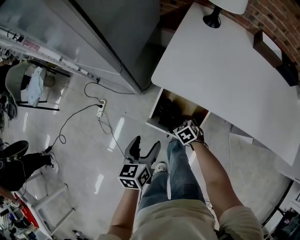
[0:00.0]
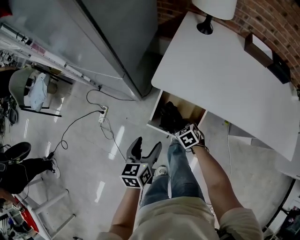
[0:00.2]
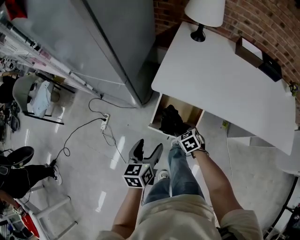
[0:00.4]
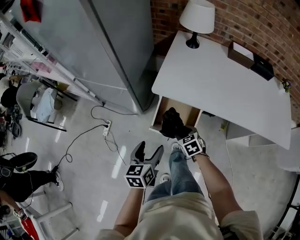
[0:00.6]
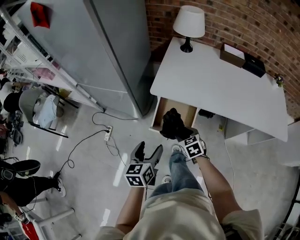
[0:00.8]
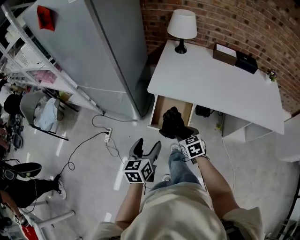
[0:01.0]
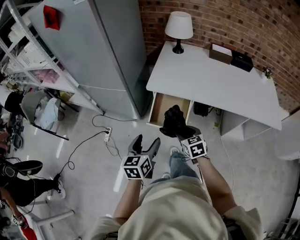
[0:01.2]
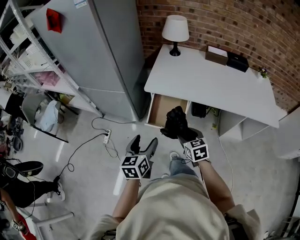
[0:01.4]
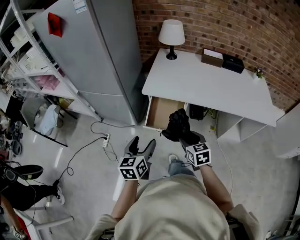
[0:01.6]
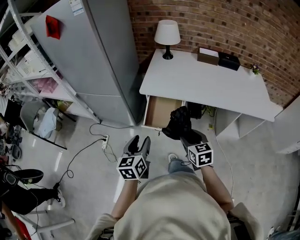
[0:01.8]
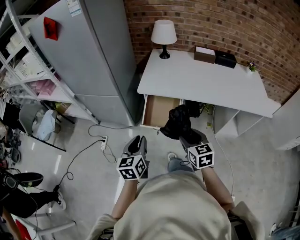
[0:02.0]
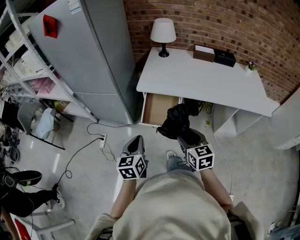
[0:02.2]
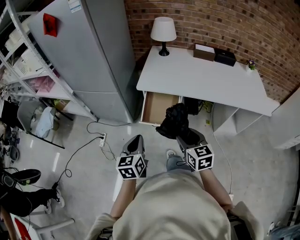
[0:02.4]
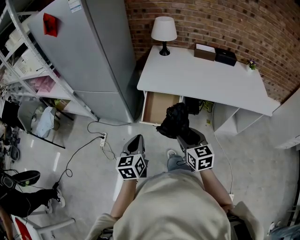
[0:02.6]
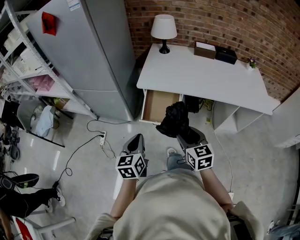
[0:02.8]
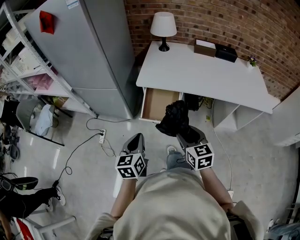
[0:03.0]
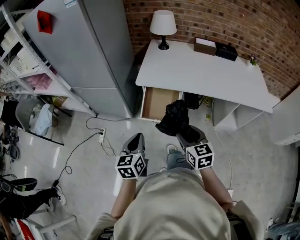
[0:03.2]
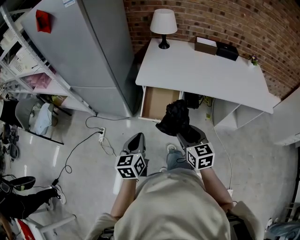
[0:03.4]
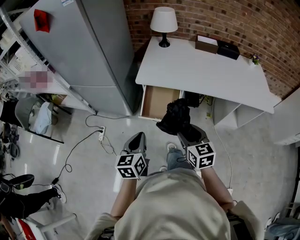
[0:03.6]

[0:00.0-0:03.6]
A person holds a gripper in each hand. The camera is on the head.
0:00.0 to 0:01.8: The right gripper is displaced upward and backward by roughly 40 cm, and points its fingers roughly 40 degrees further upward. The left gripper goes about 25 cm backward and upward, turns by about 20 degrees, and closes.
0:01.8 to 0:03.6: The left gripper closes up.

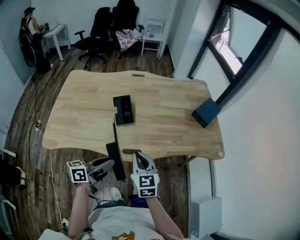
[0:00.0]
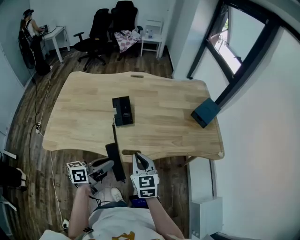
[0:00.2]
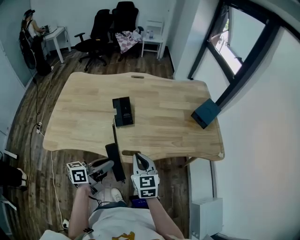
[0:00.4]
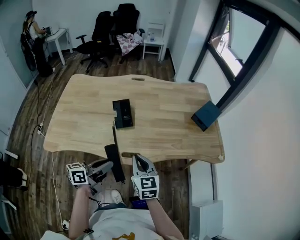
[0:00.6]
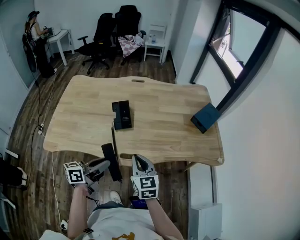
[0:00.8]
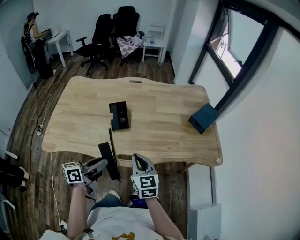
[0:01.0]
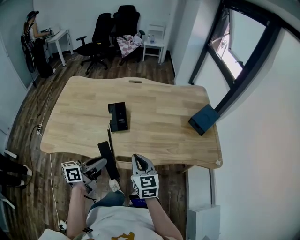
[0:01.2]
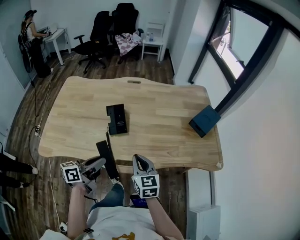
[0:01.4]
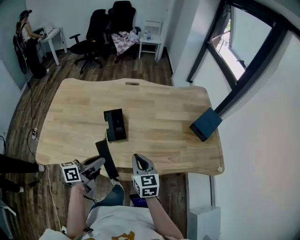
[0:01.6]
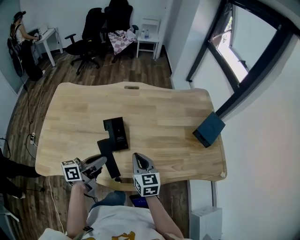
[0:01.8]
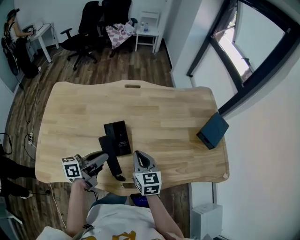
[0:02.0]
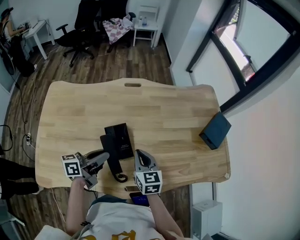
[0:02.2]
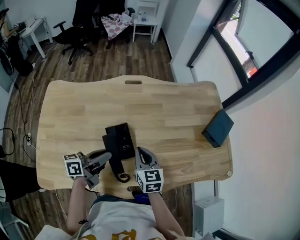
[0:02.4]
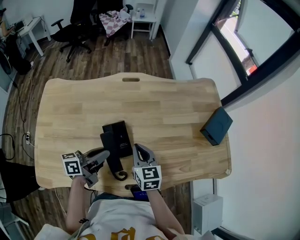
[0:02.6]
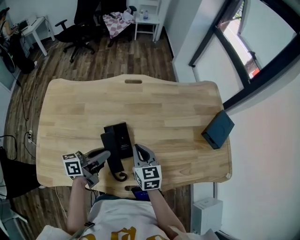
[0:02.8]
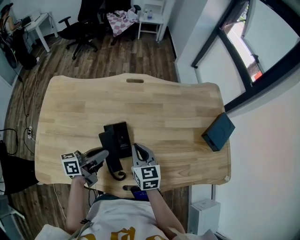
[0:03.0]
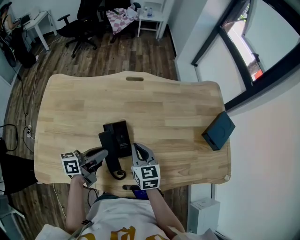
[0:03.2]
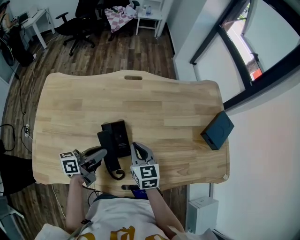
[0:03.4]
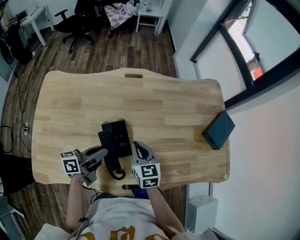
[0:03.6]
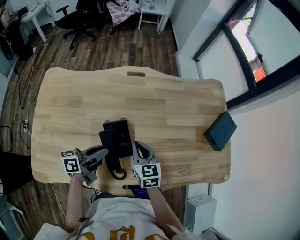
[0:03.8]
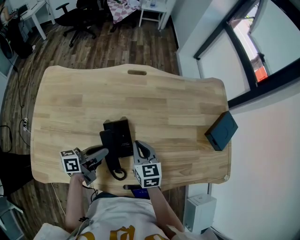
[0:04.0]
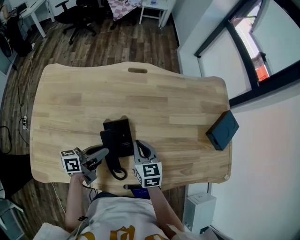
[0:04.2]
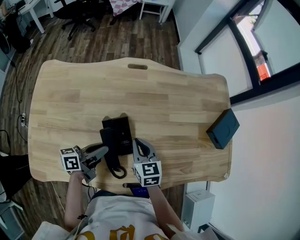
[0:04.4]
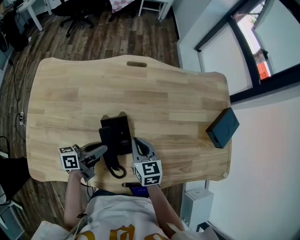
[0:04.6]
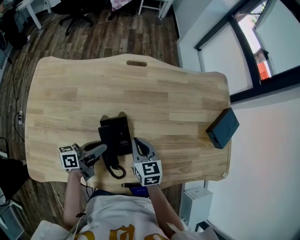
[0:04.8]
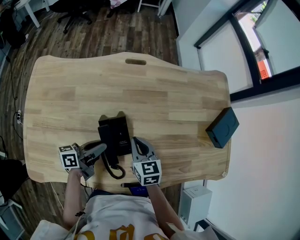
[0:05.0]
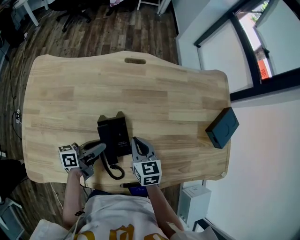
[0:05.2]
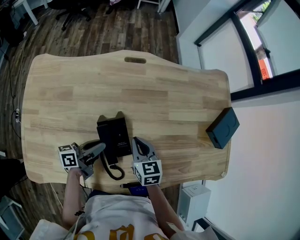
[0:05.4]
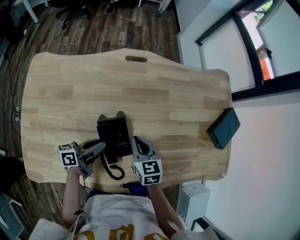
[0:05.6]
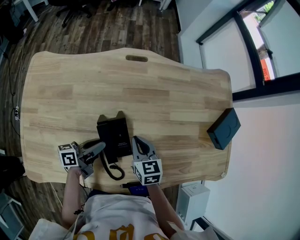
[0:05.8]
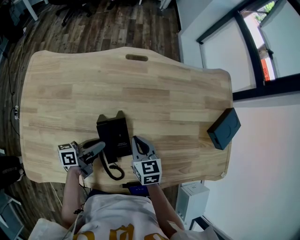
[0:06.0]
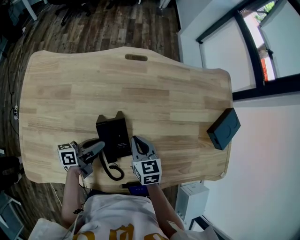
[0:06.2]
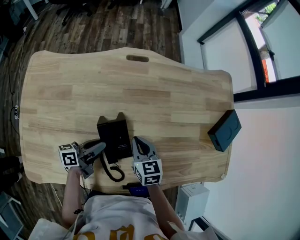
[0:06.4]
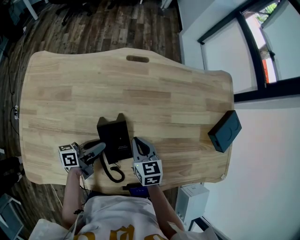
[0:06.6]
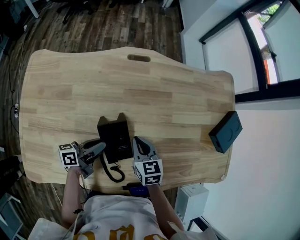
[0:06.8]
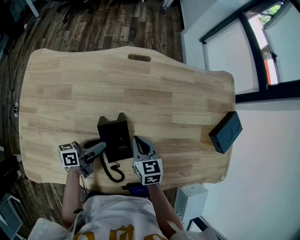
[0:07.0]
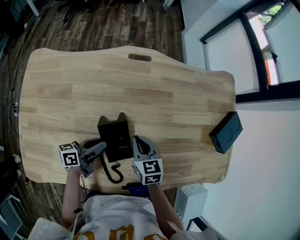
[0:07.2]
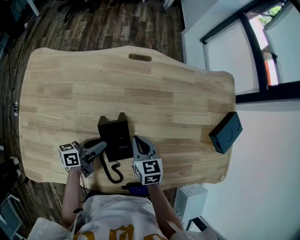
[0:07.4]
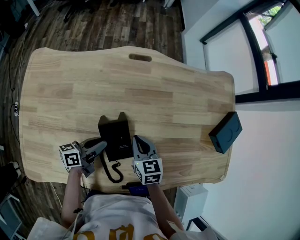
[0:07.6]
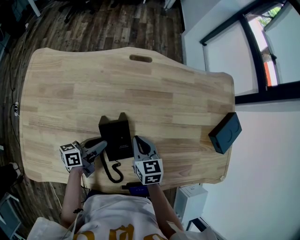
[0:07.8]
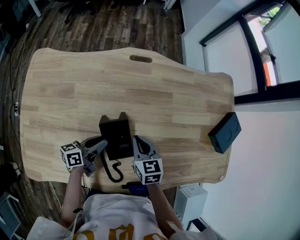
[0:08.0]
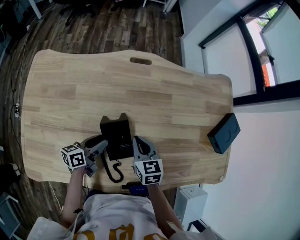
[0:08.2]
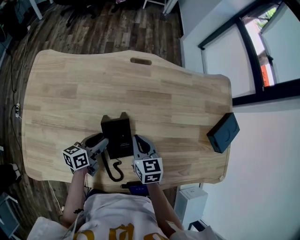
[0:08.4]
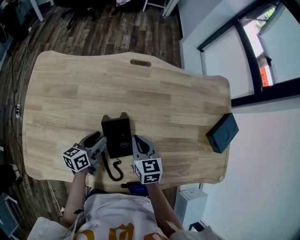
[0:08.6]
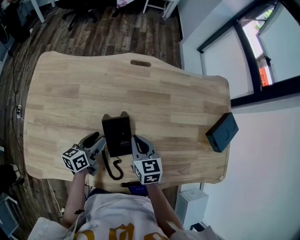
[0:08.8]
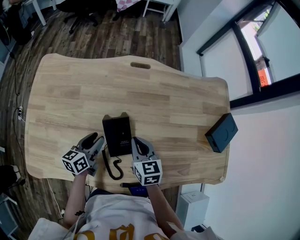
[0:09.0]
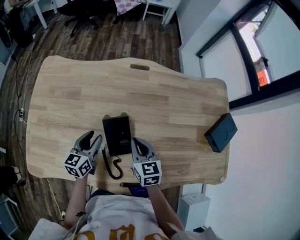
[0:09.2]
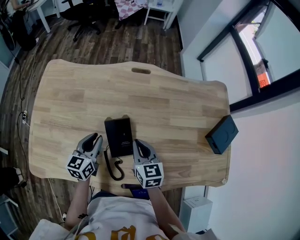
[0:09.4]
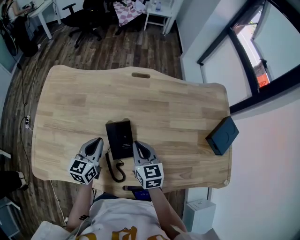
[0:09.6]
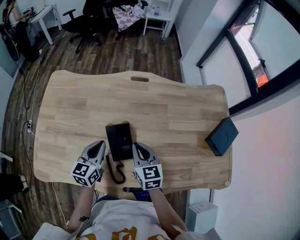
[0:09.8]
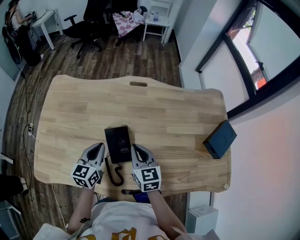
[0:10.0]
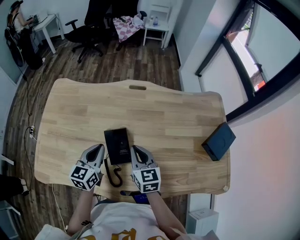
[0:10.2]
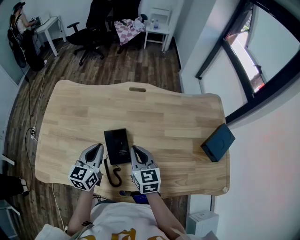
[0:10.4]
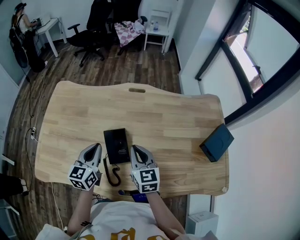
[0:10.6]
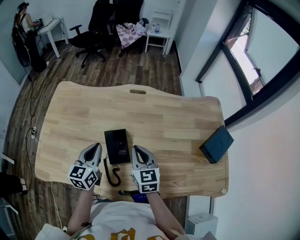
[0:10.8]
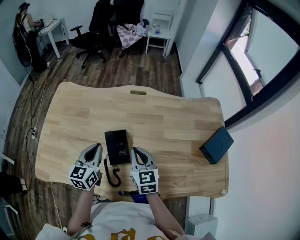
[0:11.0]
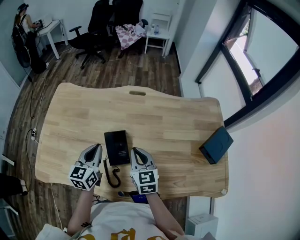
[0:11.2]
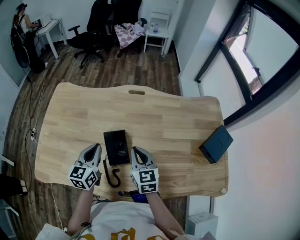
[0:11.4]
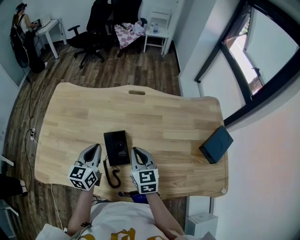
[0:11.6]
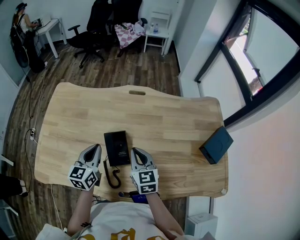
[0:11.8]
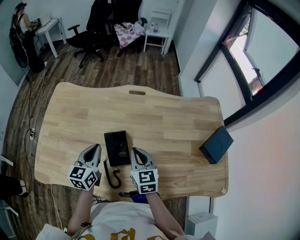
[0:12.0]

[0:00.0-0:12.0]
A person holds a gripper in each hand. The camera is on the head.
0:00.0 to 0:01.6: Both grippers travel together forward, about 10 cm.
0:01.6 to 0:03.0: Both grippers move forward and to the left, roughly 20 cm.
0:03.0 to 0:04.4: The two grippers go about 5 cm downward.
0:04.4 to 0:06.0: The left gripper heads downward, covering approximately 5 cm.
0:06.0 to 0:07.6: There are only small adjustments of the grippers.
0:07.6 to 0:09.0: The left gripper rotates some 30 degrees, and opens; the right gripper ends up about 5 cm from where it was.
0:09.0 to 0:10.4: The right gripper heads upward, covering about 10 cm. The left gripper moves upward, approximately 15 cm, changes its angle by approximately 30 degrees, and closes.
0:10.4 to 0:12.0: The grippers move only a little.

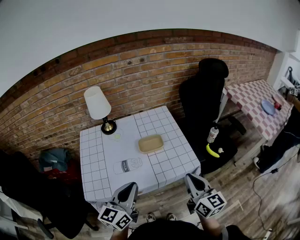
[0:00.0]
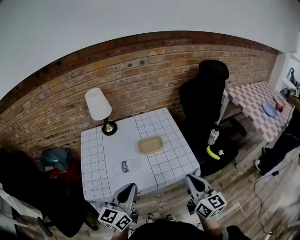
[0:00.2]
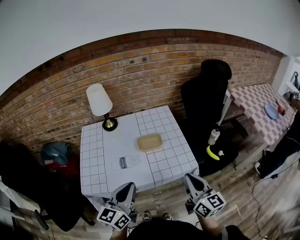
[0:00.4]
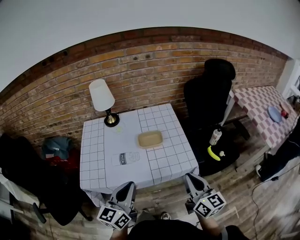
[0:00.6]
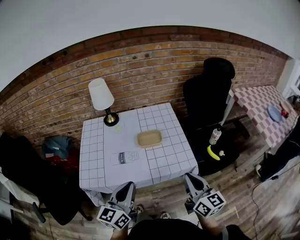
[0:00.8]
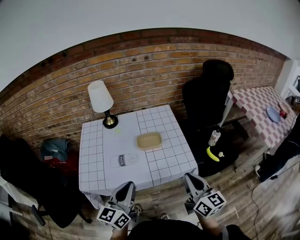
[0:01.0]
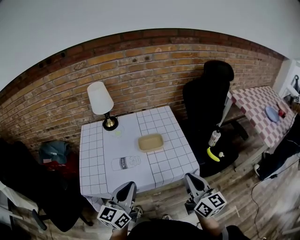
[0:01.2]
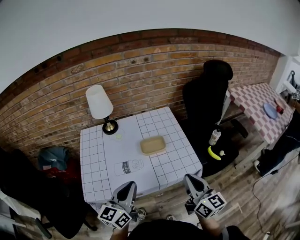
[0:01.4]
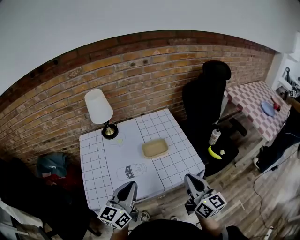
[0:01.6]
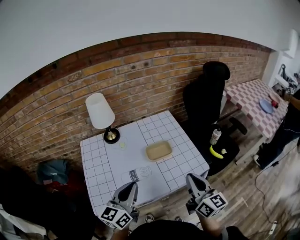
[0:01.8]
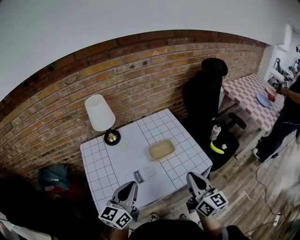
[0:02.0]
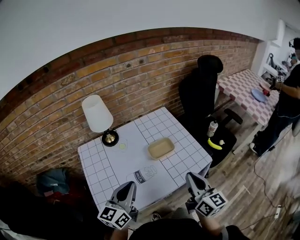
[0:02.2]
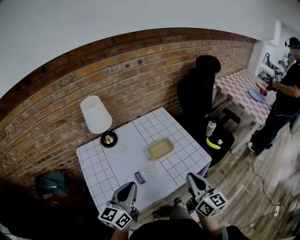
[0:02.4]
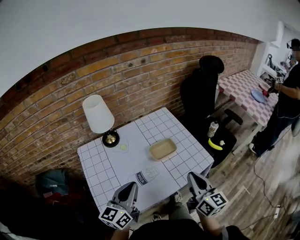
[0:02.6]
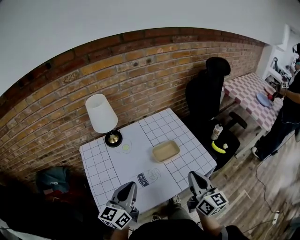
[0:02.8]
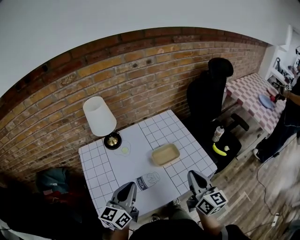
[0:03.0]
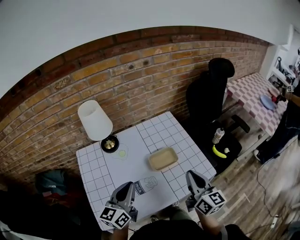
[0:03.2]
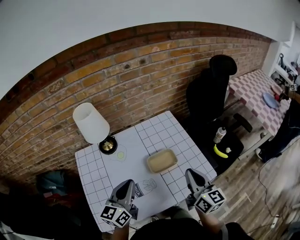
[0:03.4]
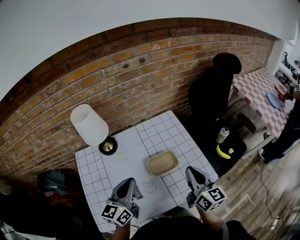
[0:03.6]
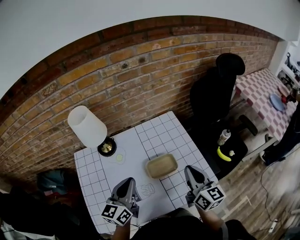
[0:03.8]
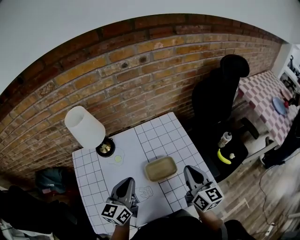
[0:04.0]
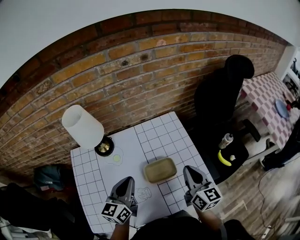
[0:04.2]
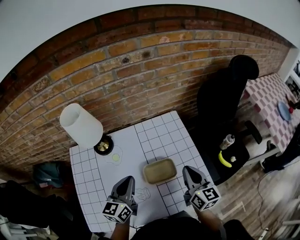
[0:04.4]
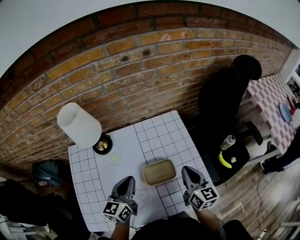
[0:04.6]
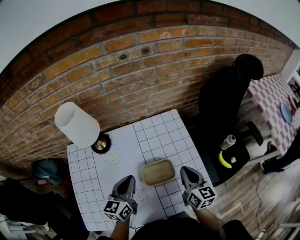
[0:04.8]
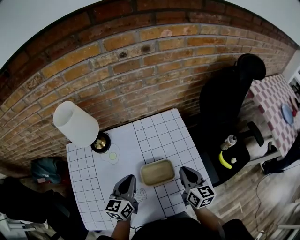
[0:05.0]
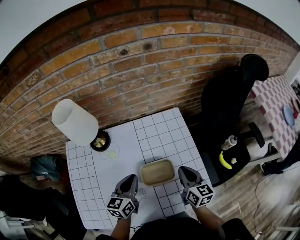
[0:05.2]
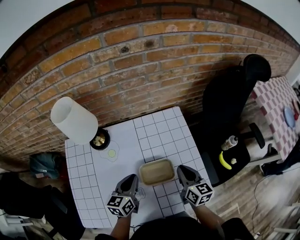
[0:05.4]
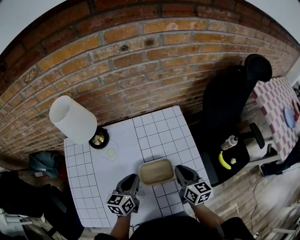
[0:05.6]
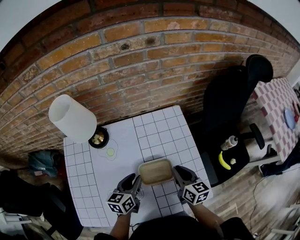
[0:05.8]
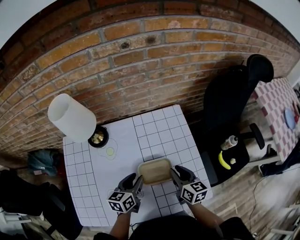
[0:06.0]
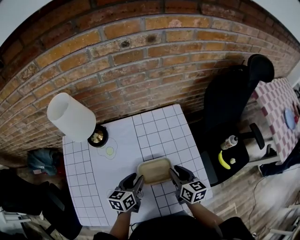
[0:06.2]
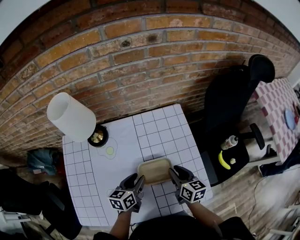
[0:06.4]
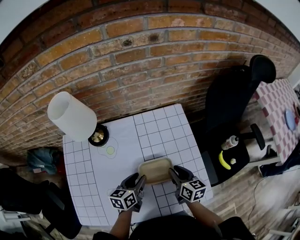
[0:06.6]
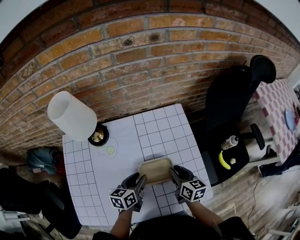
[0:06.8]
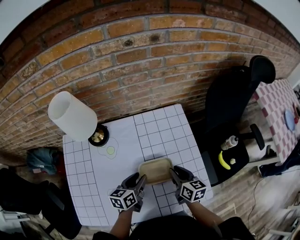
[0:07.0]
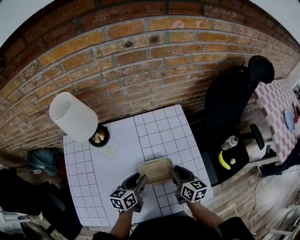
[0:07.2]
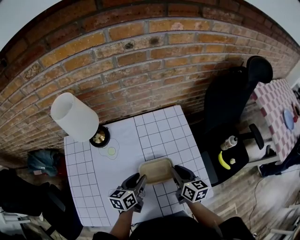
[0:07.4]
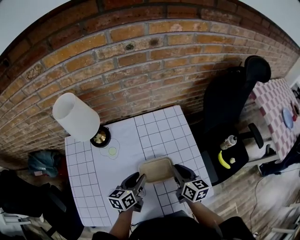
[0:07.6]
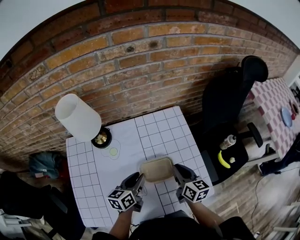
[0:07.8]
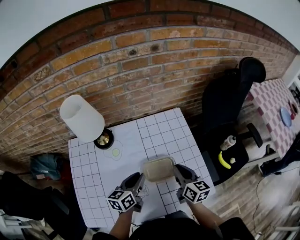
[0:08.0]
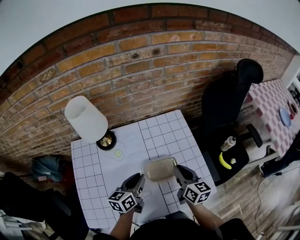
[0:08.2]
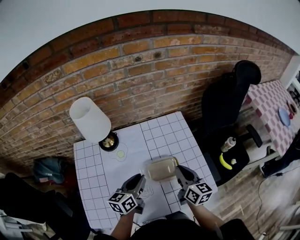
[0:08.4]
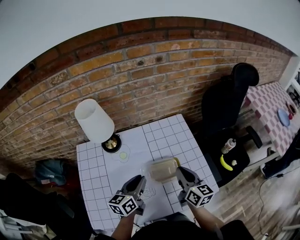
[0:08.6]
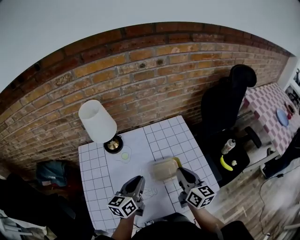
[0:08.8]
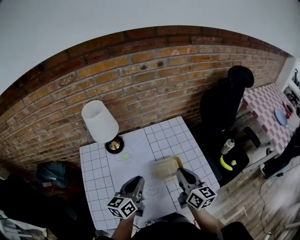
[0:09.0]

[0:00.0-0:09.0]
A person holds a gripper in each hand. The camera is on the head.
0:00.0 to 0:01.6: The left gripper changes place by approximately 5 cm.
0:01.6 to 0:03.0: The grippers both shift to the left and forward by some 10 cm.
0:03.0 to 0:04.4: The grippers both shift forward by some 15 cm.
0:04.4 to 0:06.0: Both grippers travel together downward, about 10 cm. The left gripper changes its angle by approximately 20 degrees, and opens its fingers; the right gripper turns by roughly 20 degrees, and opens.
0:06.0 to 0:07.6: The grippers move only a little.
0:07.6 to 0:09.0: The right gripper heads upward and backward, covering approximately 15 cm; the left gripper is displaced upward, to the left and backward by about 15 cm, and closes.
